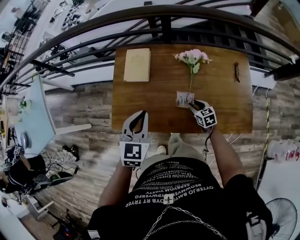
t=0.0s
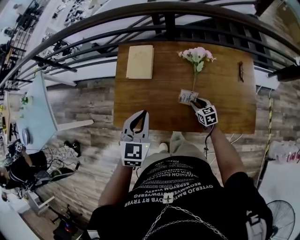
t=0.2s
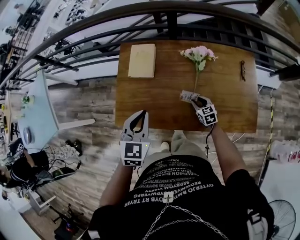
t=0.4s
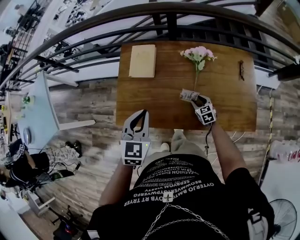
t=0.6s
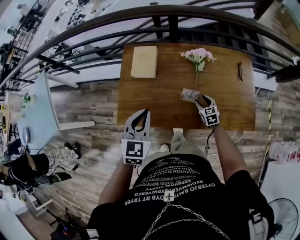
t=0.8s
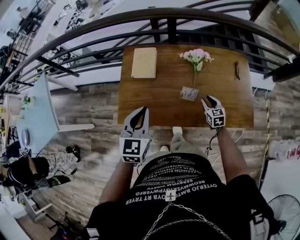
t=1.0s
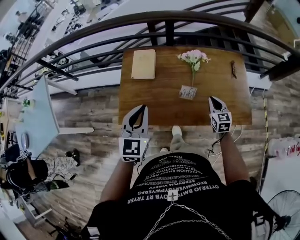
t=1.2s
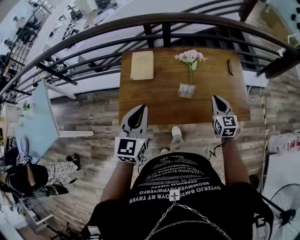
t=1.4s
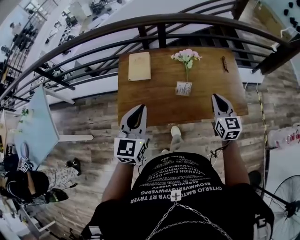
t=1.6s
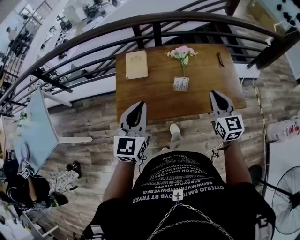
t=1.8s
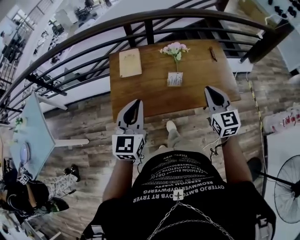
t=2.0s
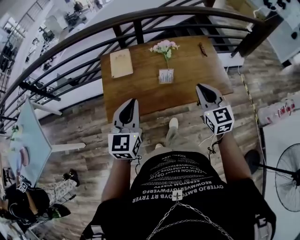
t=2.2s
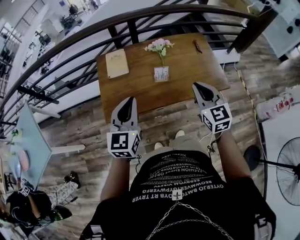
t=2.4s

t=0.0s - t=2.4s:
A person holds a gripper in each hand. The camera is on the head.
t=0.0s - t=1.2s: The left gripper moves upward, some 5 cm, while the right gripper goes approximately 15 cm upward, swivels some 30 degrees, and closes its fingers.
t=1.2s - t=2.4s: The left gripper travels backward by some 10 cm, while the right gripper travels upward and backward by some 30 cm.

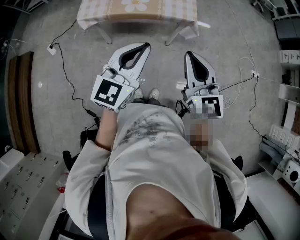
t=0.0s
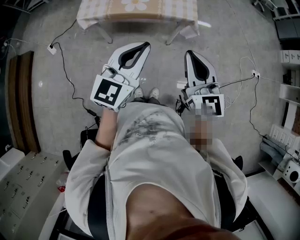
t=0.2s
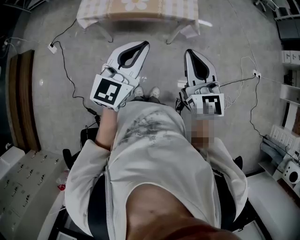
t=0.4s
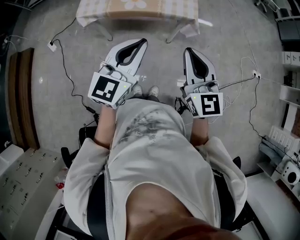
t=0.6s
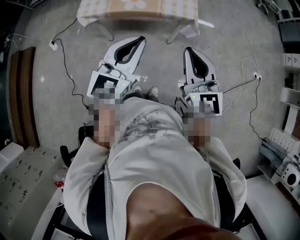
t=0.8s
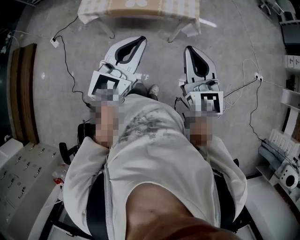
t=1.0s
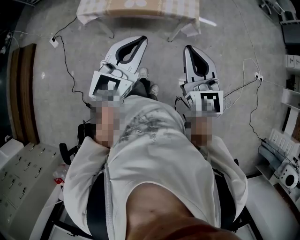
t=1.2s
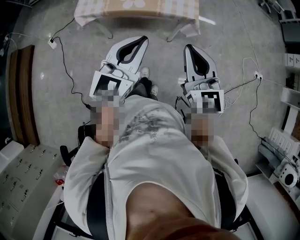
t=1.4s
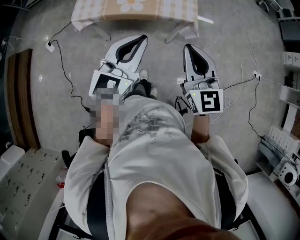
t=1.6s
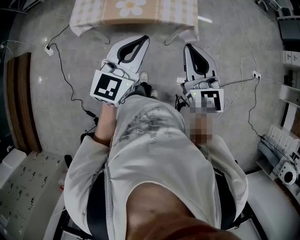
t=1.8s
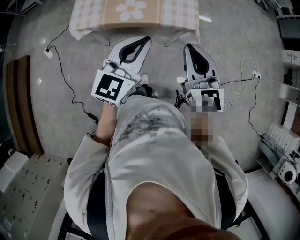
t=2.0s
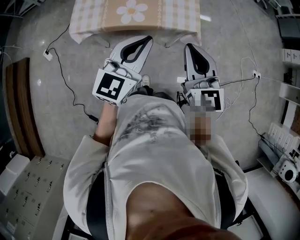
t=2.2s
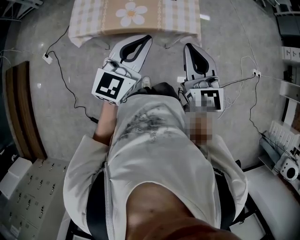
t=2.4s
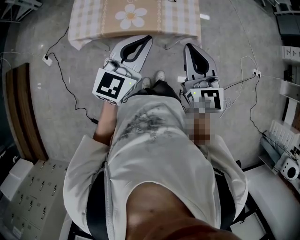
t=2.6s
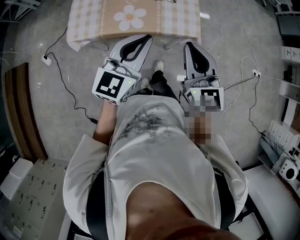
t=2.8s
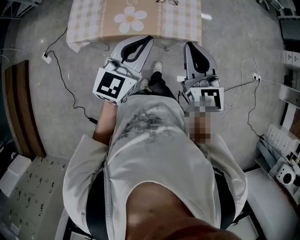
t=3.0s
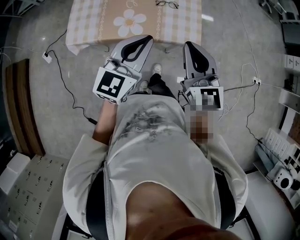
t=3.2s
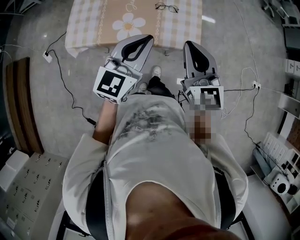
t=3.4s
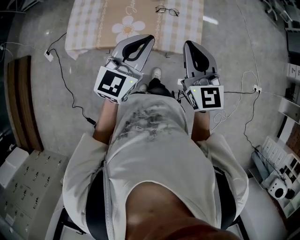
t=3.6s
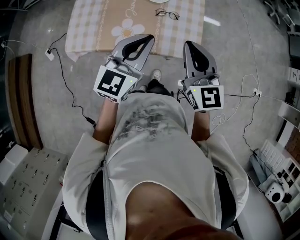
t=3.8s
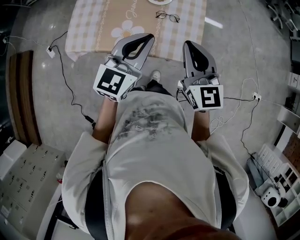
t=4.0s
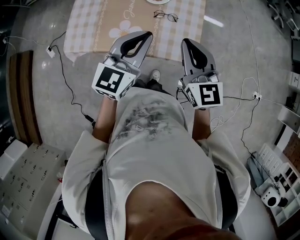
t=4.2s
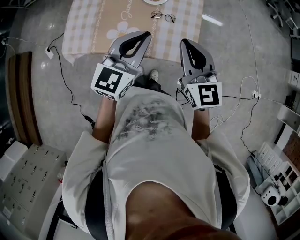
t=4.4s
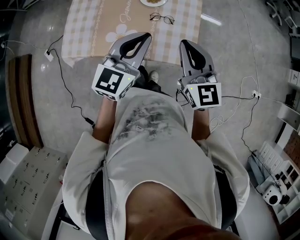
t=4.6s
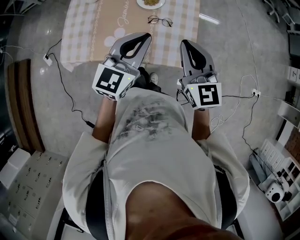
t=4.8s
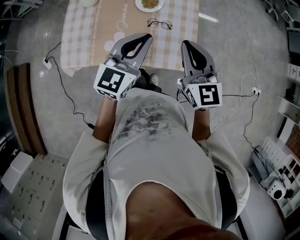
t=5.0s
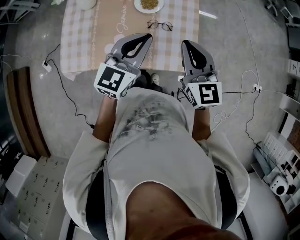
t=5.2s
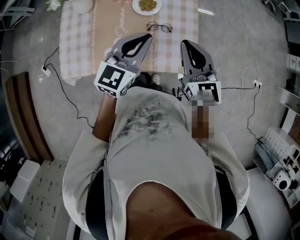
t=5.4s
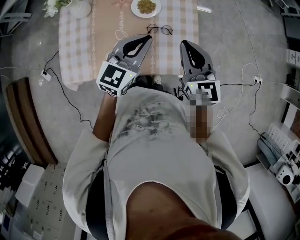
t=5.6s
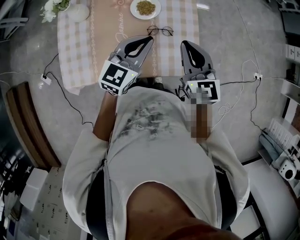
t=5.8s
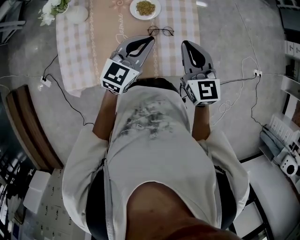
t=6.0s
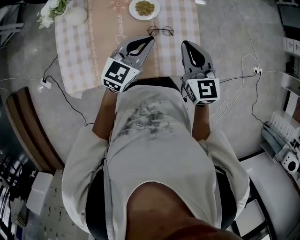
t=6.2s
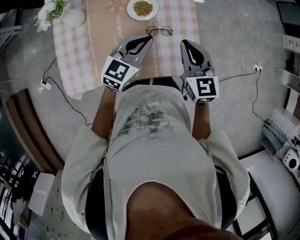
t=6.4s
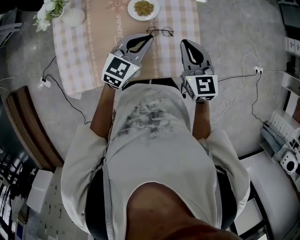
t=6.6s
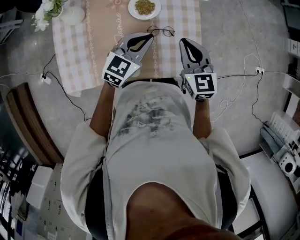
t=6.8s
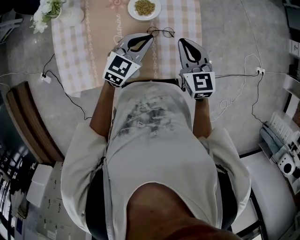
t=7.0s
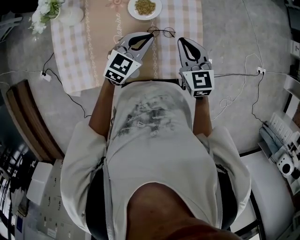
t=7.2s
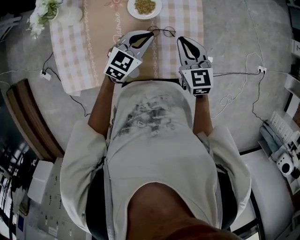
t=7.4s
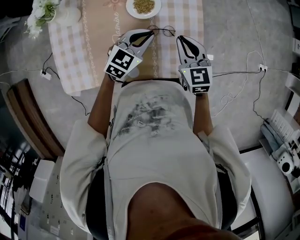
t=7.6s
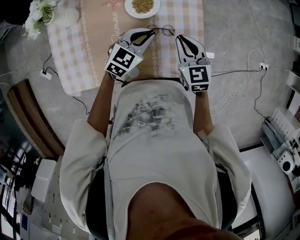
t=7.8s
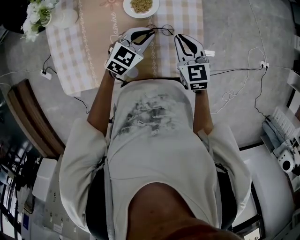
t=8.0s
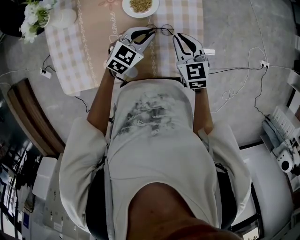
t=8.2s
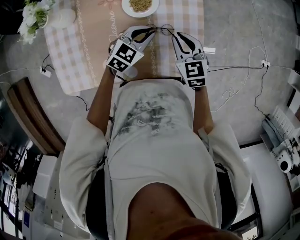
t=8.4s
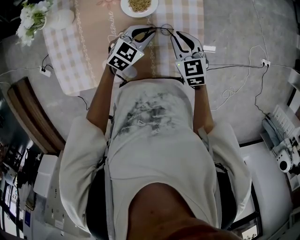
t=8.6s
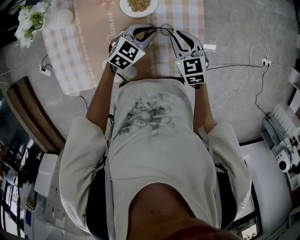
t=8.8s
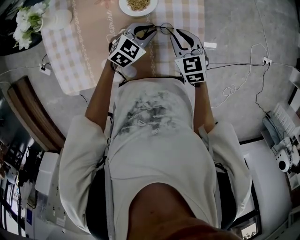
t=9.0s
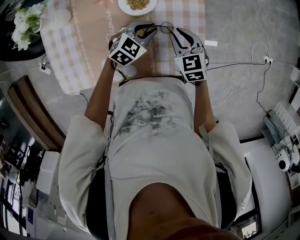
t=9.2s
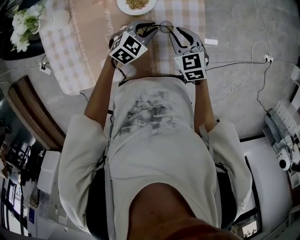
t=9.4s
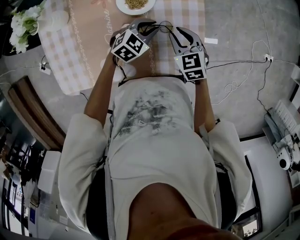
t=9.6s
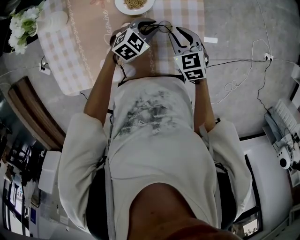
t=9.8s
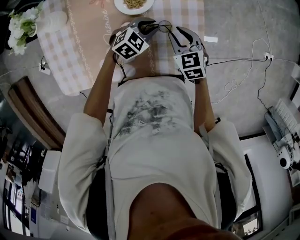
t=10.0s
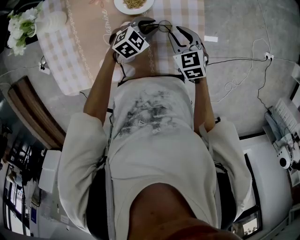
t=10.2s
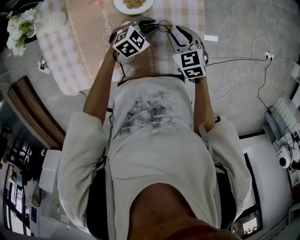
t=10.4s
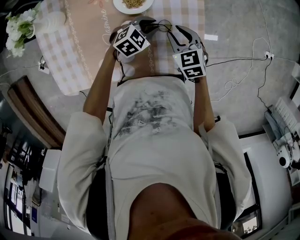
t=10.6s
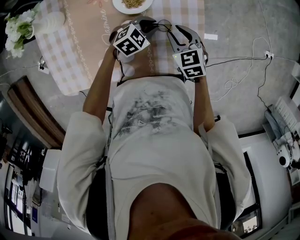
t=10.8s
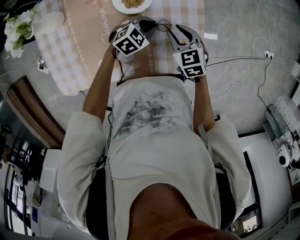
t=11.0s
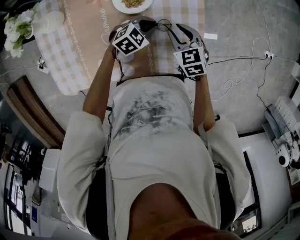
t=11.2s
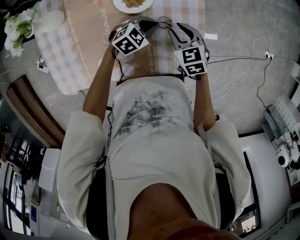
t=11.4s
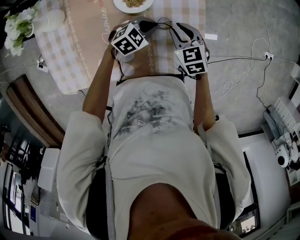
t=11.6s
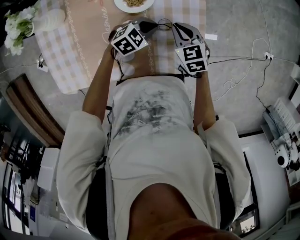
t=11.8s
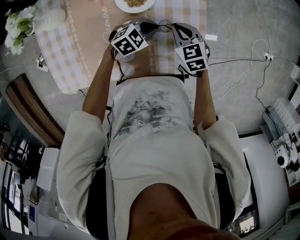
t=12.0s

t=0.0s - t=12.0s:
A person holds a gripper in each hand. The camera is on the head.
t=0.0s - t=1.6s: Both grippers move forward, some 10 cm.
t=1.6s - t=3.0s: Both grippers move forward, roughly 15 cm.
t=3.0s - t=4.4s: Both grippers travel together forward, about 15 cm.
t=4.4s - t=6.0s: The grippers both shift forward and downward by about 15 cm. The left gripper rotates some 20 degrees.
t=6.0s - t=7.6s: The grippers both shift downward and forward by about 10 cm.
t=7.6s - t=9.0s: The two grippers go some 10 cm downward.
t=9.0s - t=10.4s: The left gripper goes some 5 cm downward.
t=10.4s - t=12.0s: The right gripper closes its fingers. The left gripper closes.

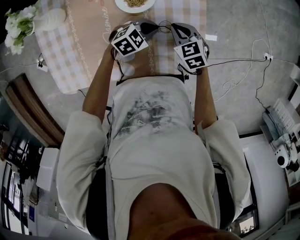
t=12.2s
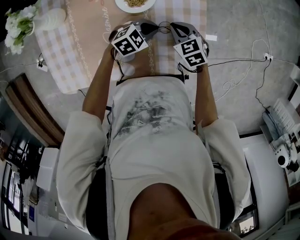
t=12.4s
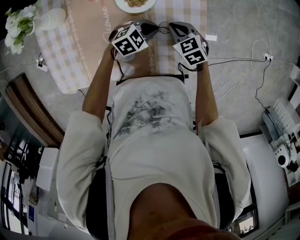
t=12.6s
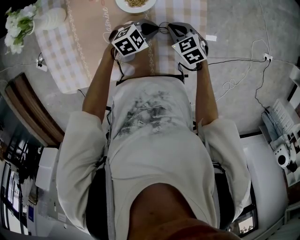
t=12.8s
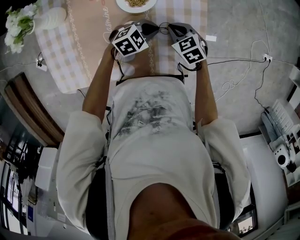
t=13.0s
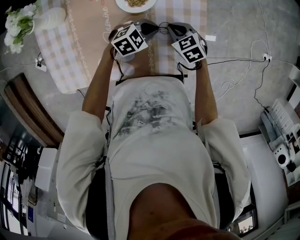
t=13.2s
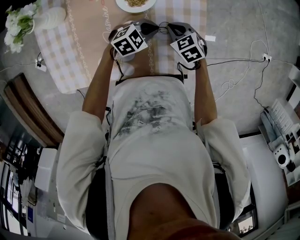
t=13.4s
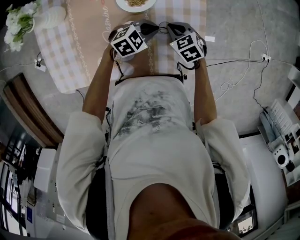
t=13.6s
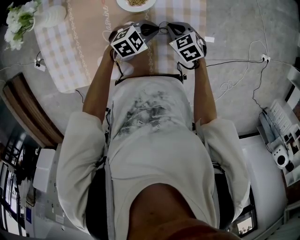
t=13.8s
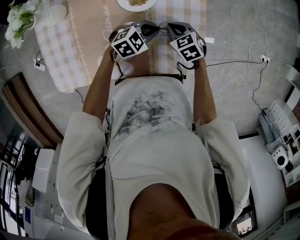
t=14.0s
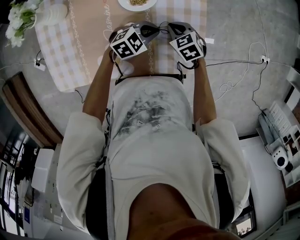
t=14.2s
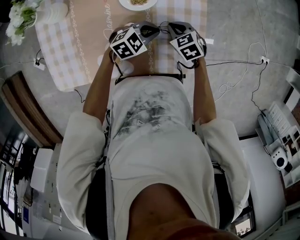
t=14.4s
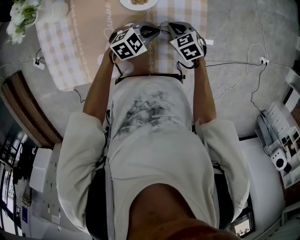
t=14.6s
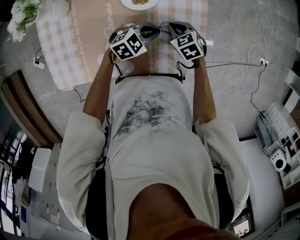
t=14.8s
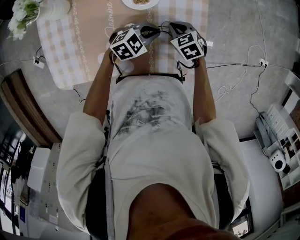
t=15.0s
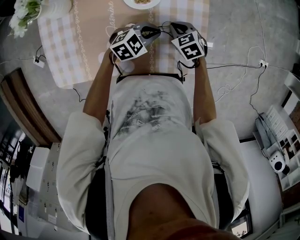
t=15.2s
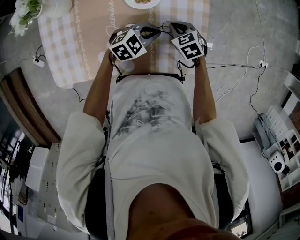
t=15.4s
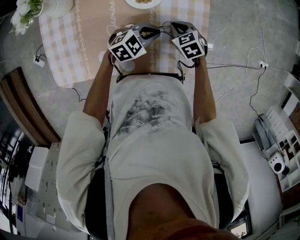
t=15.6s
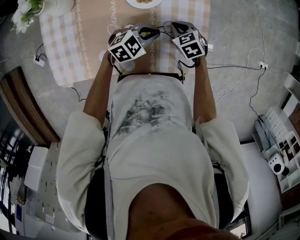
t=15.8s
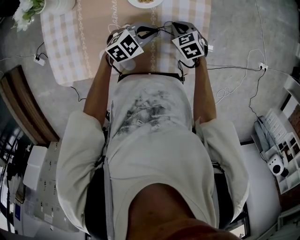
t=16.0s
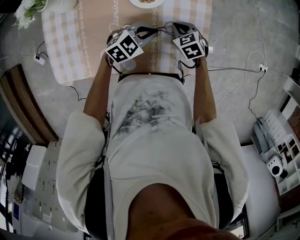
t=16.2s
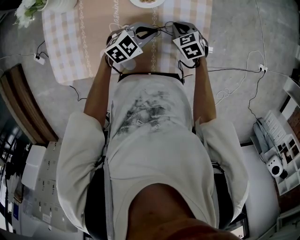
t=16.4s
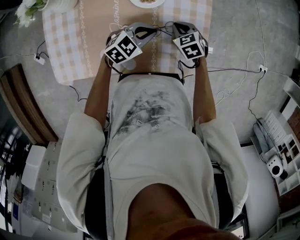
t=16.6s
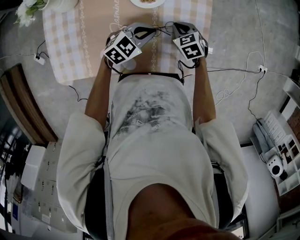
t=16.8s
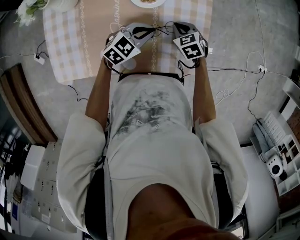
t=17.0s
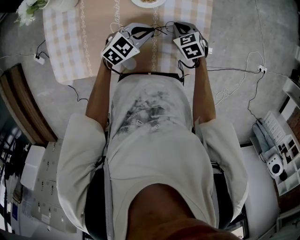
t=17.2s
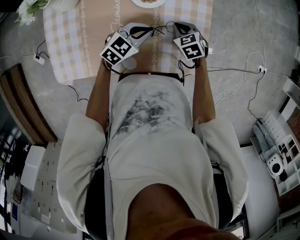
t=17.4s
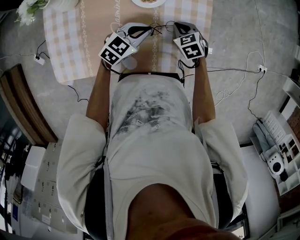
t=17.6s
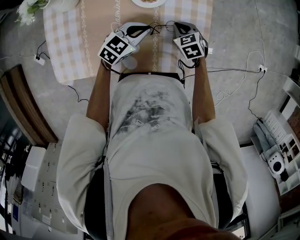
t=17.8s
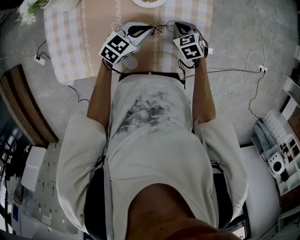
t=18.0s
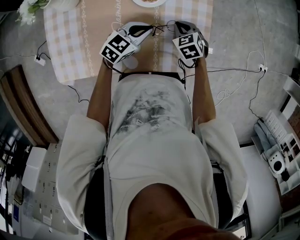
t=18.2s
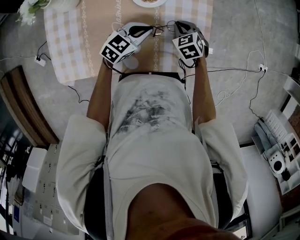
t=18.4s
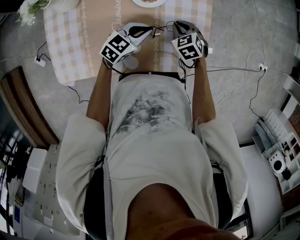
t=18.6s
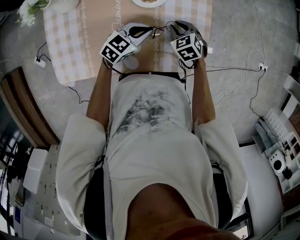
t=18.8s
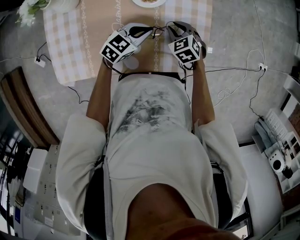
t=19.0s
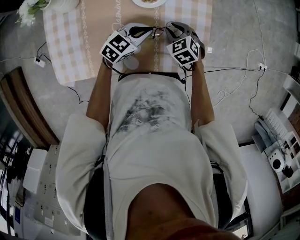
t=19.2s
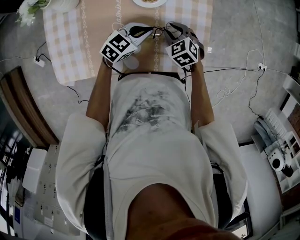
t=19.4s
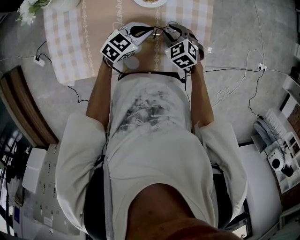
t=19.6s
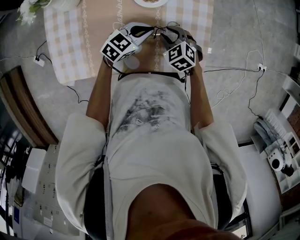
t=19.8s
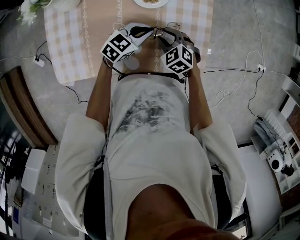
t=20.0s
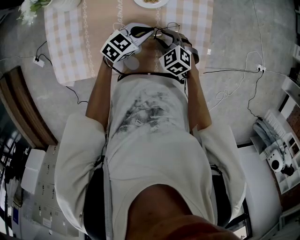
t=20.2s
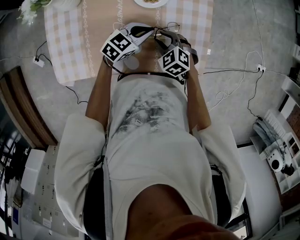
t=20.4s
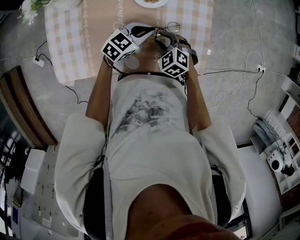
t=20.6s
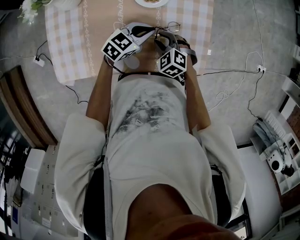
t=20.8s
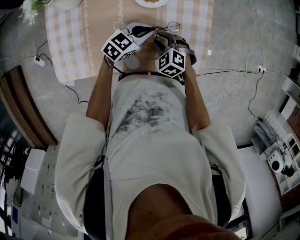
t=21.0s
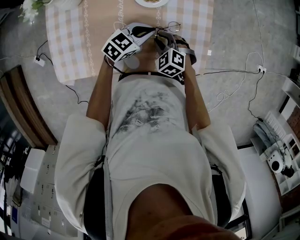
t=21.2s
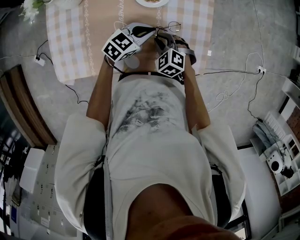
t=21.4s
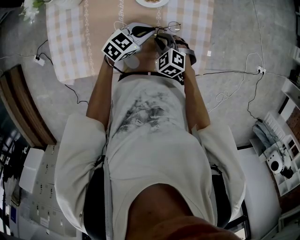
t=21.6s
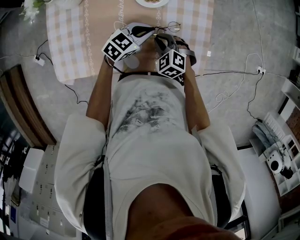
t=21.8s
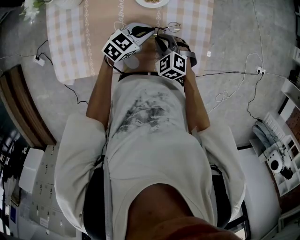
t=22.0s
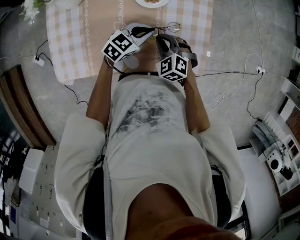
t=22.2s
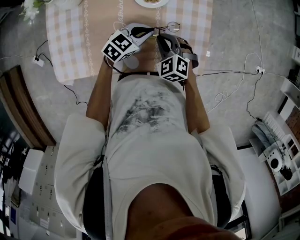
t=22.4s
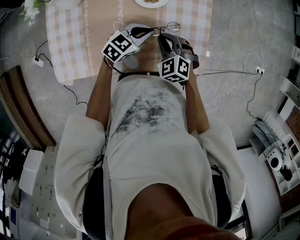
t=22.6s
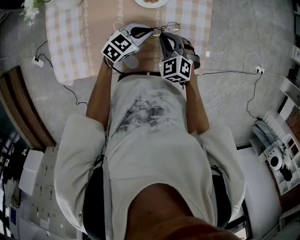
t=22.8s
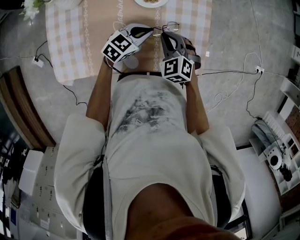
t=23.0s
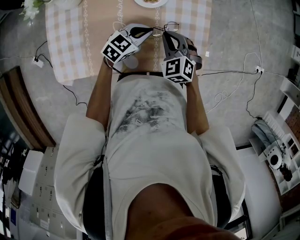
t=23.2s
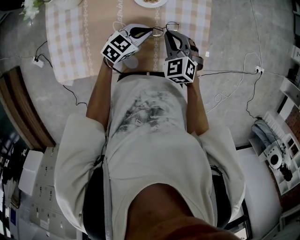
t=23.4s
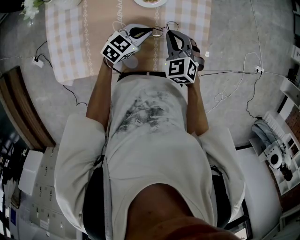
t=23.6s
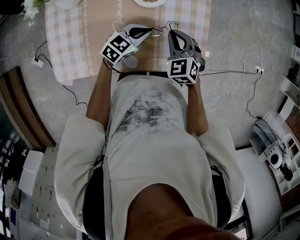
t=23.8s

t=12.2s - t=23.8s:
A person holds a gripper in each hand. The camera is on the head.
t=12.2s - t=15.0s: The grippers make only small movements.
t=15.0s - t=16.6s: The grippers stay close to where they were, moving slightly.
t=16.6s - t=18.0s: The grippers make only small movements.
t=18.0s - t=19.4s: The right gripper shifts by roughly 5 cm, and opens its fingers.
t=19.4s - t=21.0s: The right gripper goes some 5 cm backward.
t=21.0s - t=22.4s: The right gripper closes its fingers.
t=22.4s - t=23.8s: The right gripper ends up roughly 5 cm from where it was.
